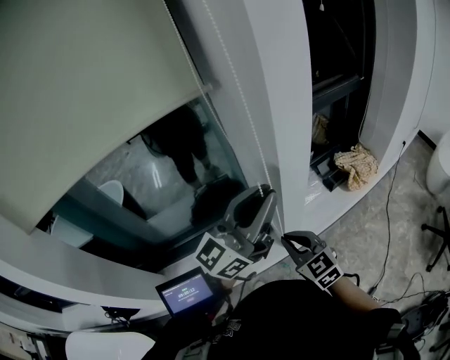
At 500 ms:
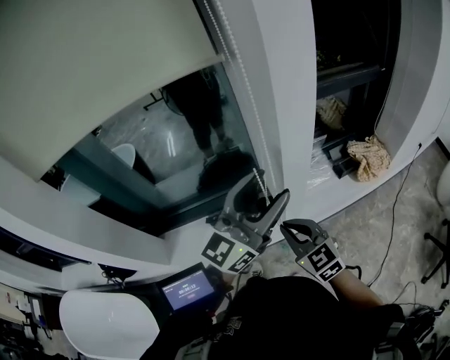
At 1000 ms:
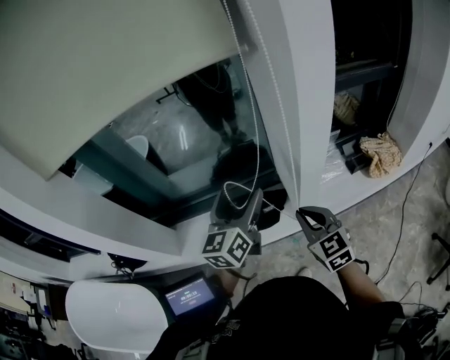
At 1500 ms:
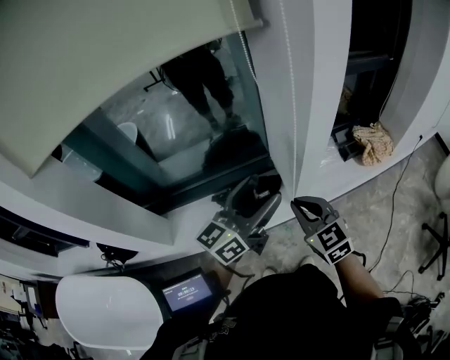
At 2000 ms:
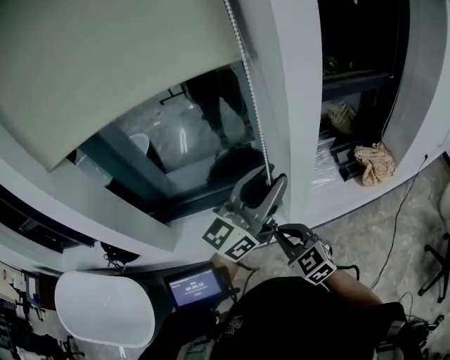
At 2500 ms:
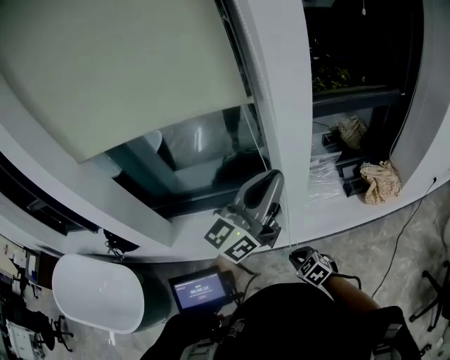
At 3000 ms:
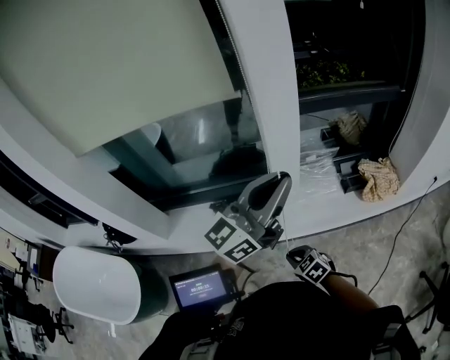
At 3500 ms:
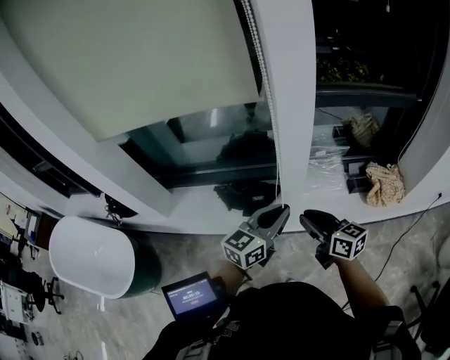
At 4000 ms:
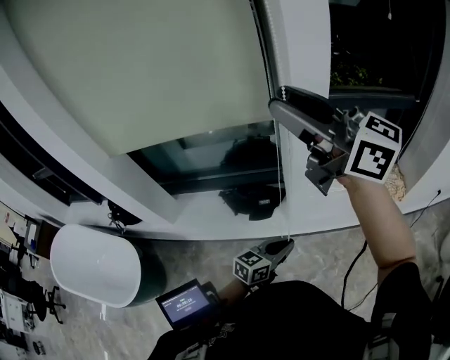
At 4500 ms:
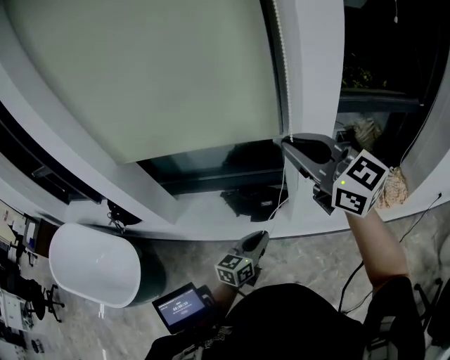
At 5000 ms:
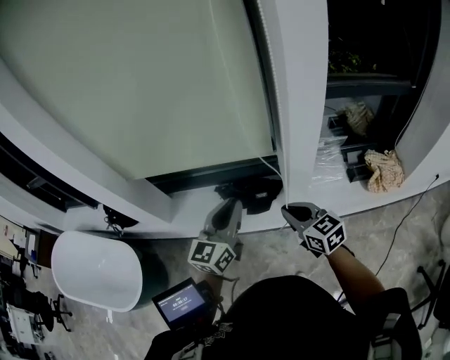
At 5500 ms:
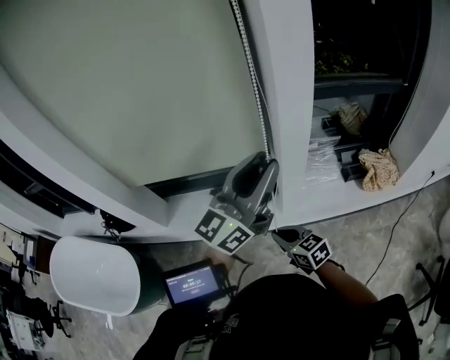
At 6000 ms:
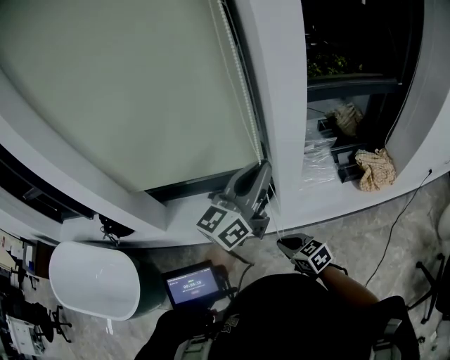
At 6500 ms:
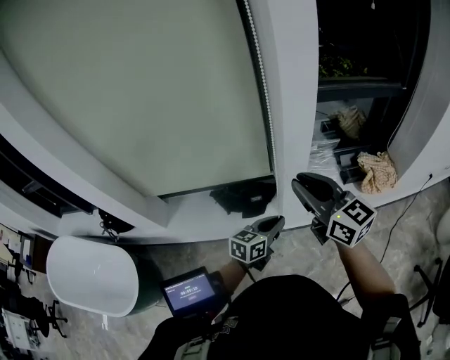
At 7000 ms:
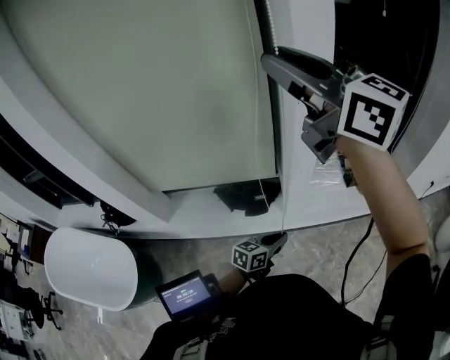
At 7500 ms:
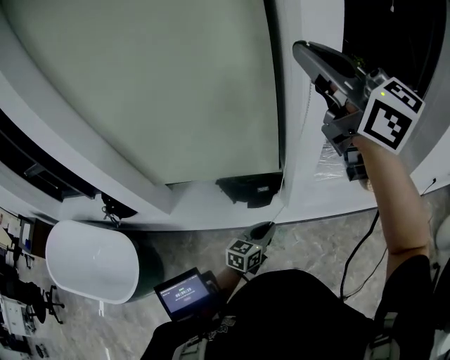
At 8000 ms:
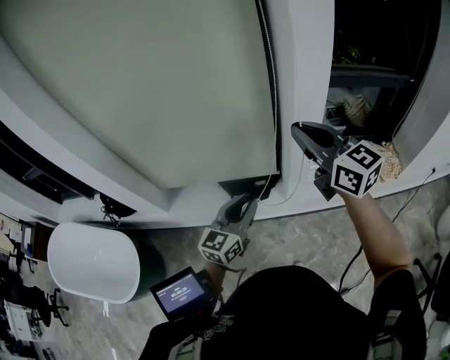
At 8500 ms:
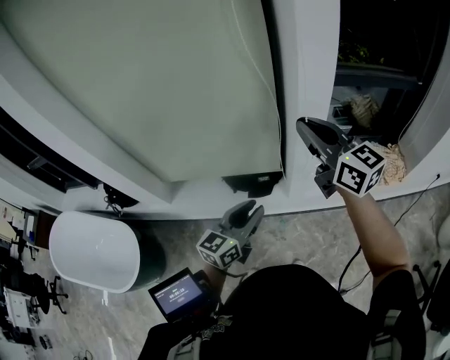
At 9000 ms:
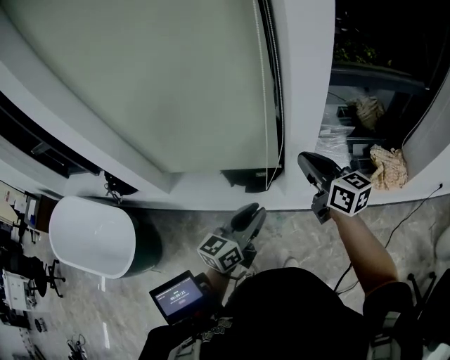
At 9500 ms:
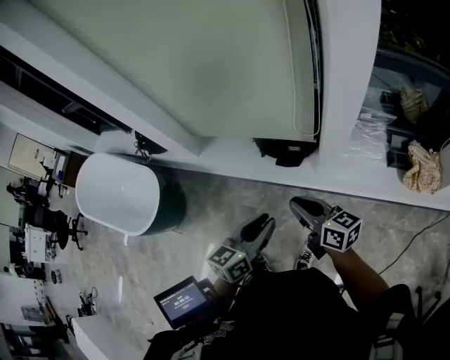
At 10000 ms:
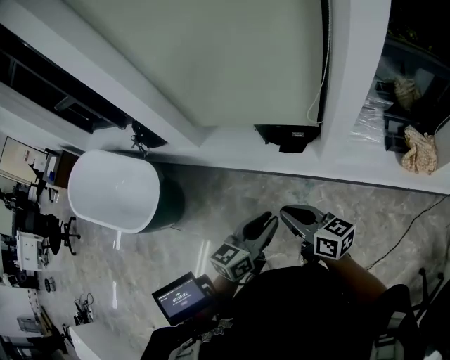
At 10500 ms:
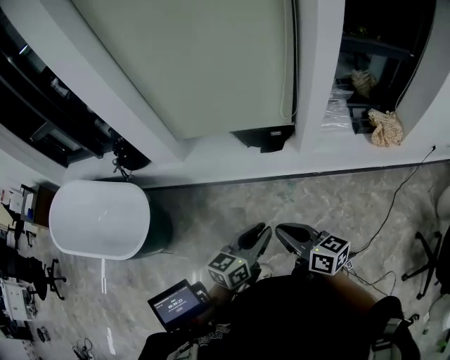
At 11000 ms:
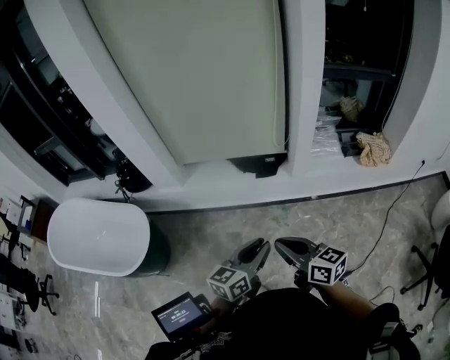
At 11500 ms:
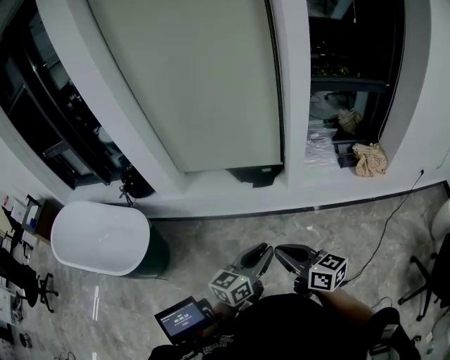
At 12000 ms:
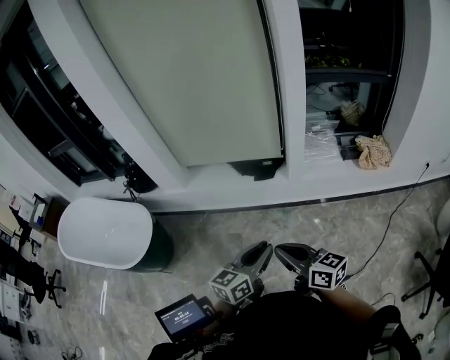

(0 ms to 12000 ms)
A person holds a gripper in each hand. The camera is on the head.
0 ms - 2000 ms: Both grippers travel together backward, approximately 10 cm. The left gripper moves some 15 cm to the left and comes back, and opens and closes again.
2000 ms - 4000 ms: The left gripper moves downward, some 30 cm, tips its fingers downward by about 40 degrees, and closes. The right gripper moves upward, roughly 40 cm, points its fingers roughly 40 degrees further upward, and opens its fingers.
4000 ms - 6000 ms: The right gripper shifts about 50 cm downward, points its fingers approximately 50 degrees further downward, and closes. The left gripper shifts some 25 cm upward, and points its fingers about 30 degrees further upward.
6000 ms - 8000 ms: The right gripper shifts some 35 cm upward and forward, angles its fingers upward, by roughly 30 degrees, and opens and closes again; the left gripper is displaced downward and to the left by approximately 20 cm, and swivels some 20 degrees.
8000 ms - 10000 ms: The right gripper travels downward, backward and to the left by about 35 cm, and rotates about 40 degrees. The left gripper heads backward, covering approximately 20 cm, and rotates approximately 20 degrees.
10000 ms - 12000 ms: The two grippers go roughly 20 cm backward.

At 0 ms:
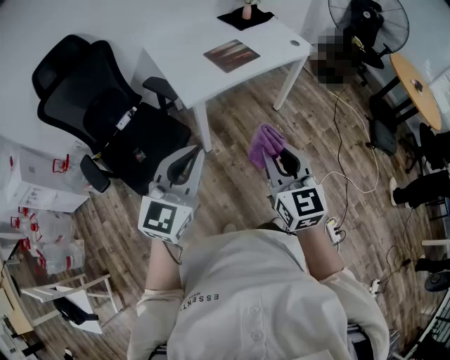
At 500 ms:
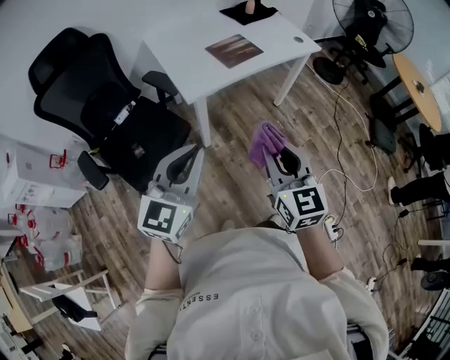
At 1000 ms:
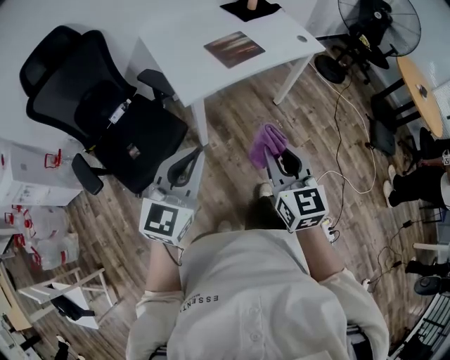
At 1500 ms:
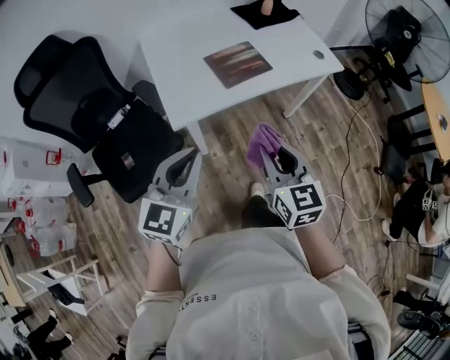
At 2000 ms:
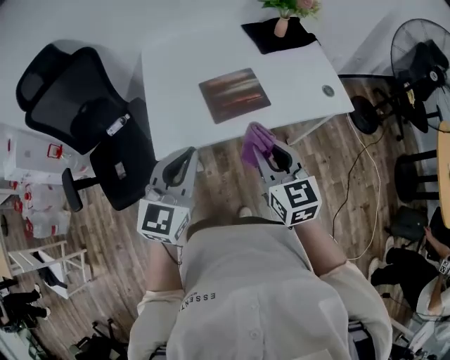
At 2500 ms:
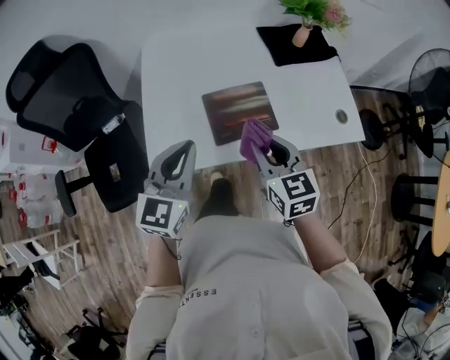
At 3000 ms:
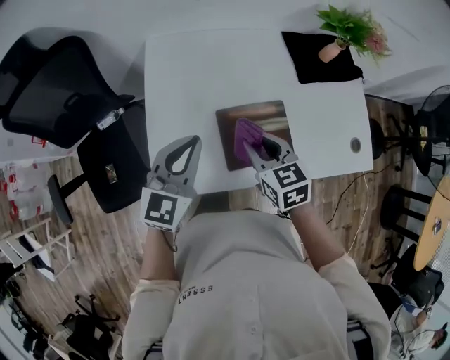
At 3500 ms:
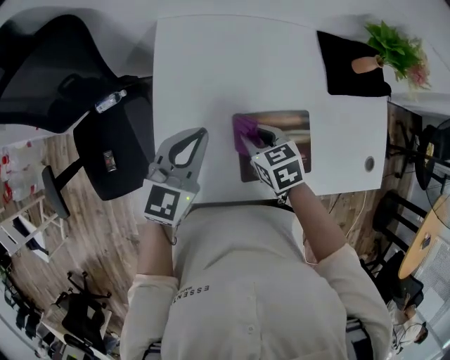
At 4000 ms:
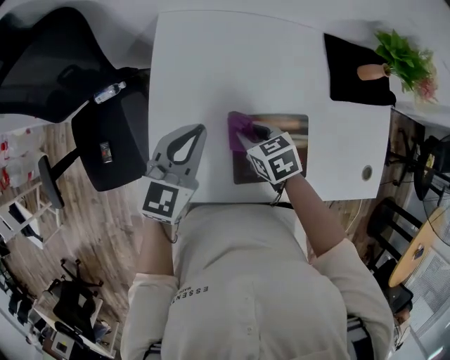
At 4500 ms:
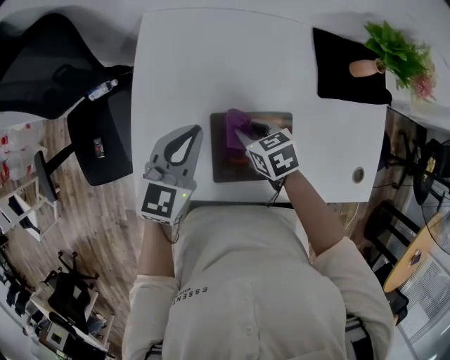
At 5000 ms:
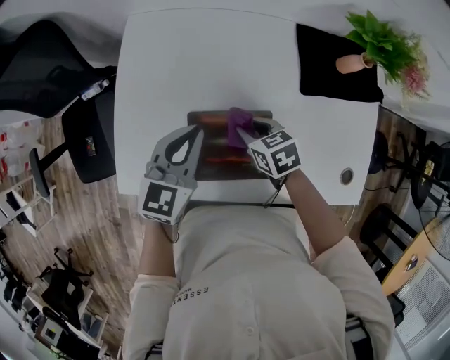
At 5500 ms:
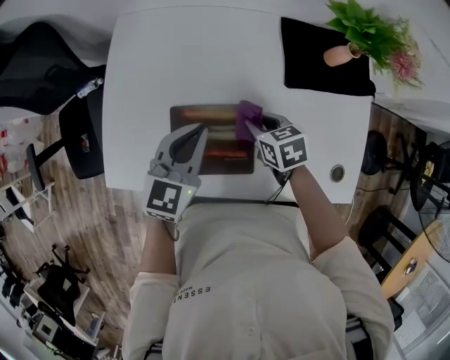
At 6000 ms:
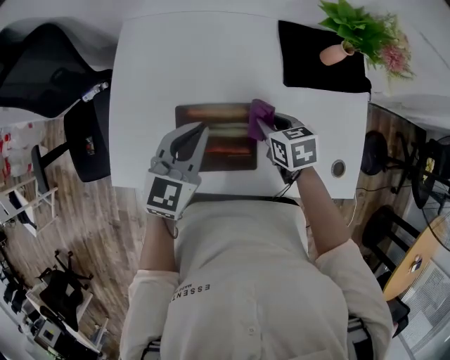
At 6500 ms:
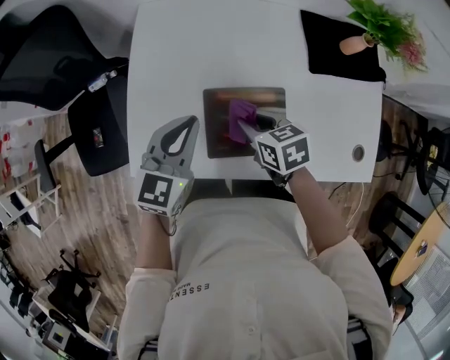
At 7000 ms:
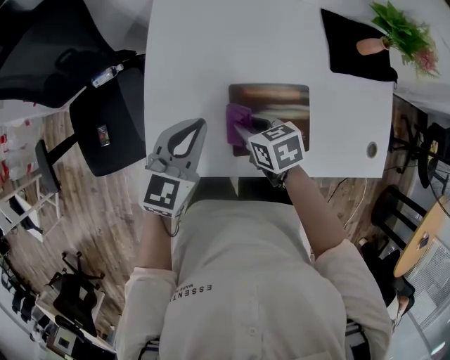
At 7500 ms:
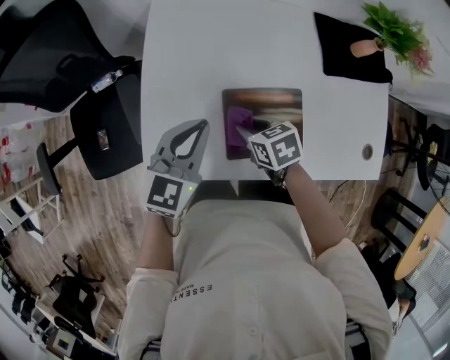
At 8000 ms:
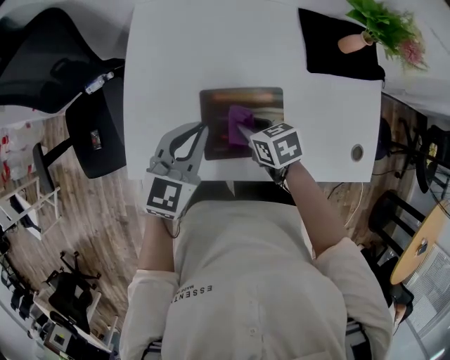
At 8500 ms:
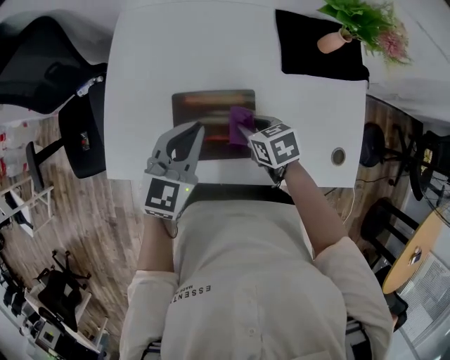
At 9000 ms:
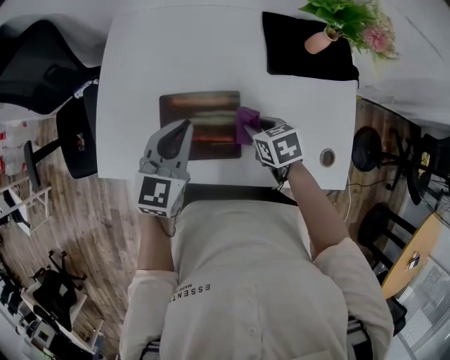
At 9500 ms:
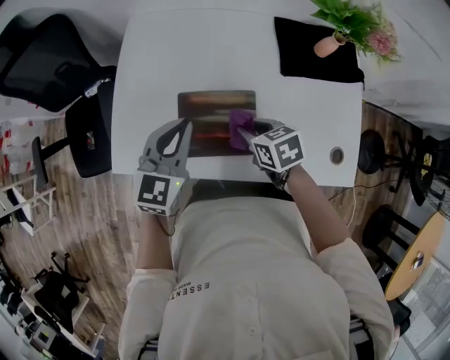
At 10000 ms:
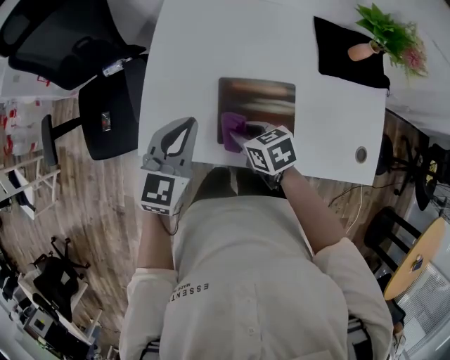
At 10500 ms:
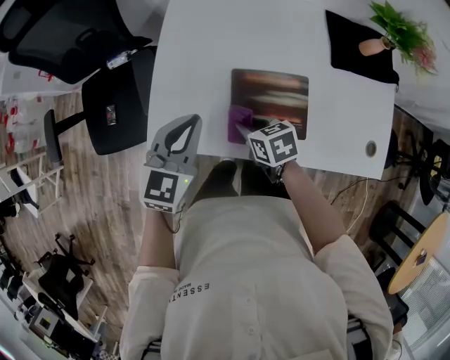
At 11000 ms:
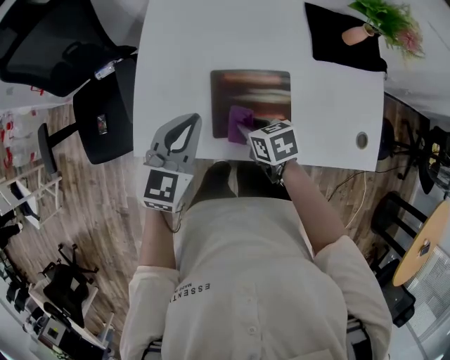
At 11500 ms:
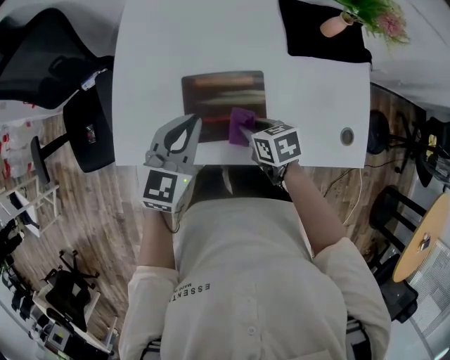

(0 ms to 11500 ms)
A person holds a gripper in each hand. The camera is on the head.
0 ms - 2000 ms: Both grippers travel together forward, roughly 40 cm. The right gripper changes its angle by some 20 degrees. Meanwhile the left gripper swivels some 20 degrees.
2000 ms - 4000 ms: The left gripper travels forward by roughly 35 cm; the right gripper heads forward and downward, covering roughly 40 cm, and tips its fingers downward by approximately 40 degrees.
4000 ms - 6000 ms: The grippers both shift to the right by about 20 cm.
6000 ms - 7500 ms: Both grippers move to the left, roughly 15 cm.
7500 ms - 9500 ms: Both grippers move to the right, some 10 cm.
9500 ms - 11500 ms: The right gripper travels to the left and back again, about 15 cm each way; the left gripper goes to the left and returns, approximately 15 cm each way.

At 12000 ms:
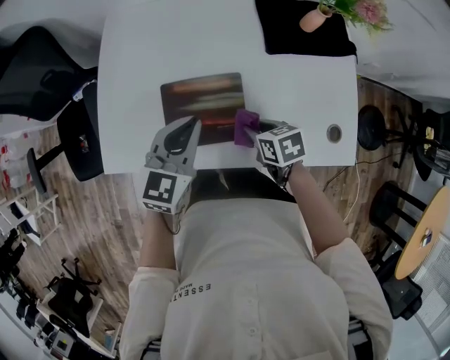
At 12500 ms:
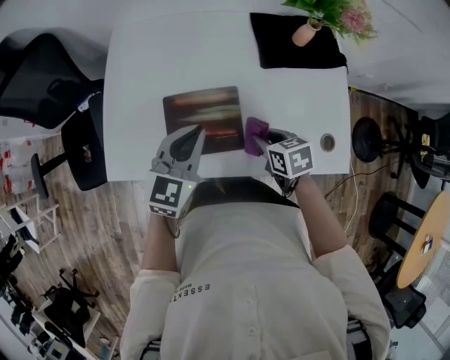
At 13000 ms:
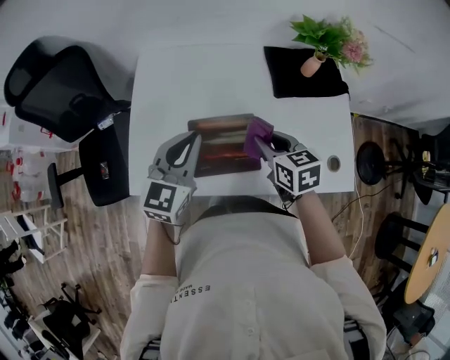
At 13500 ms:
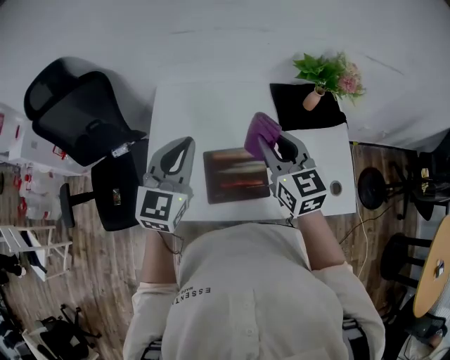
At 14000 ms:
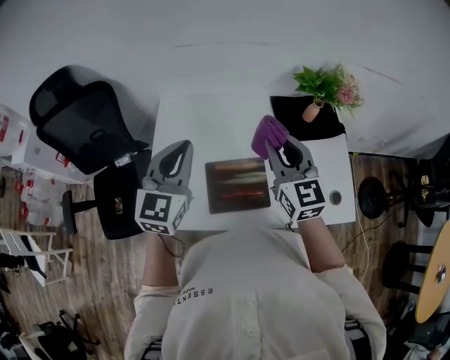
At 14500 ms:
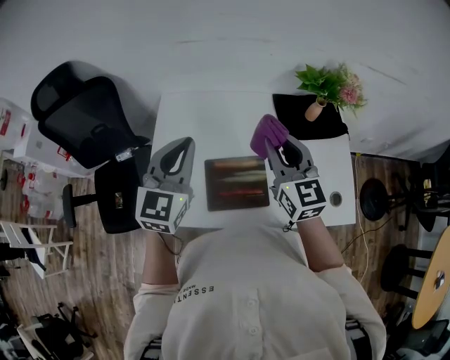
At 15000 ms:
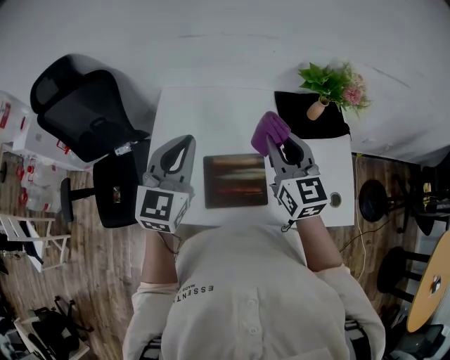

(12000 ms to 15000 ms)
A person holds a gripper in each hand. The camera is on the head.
12000 ms - 13500 ms: The left gripper is displaced upward and to the left by about 20 cm. The right gripper heads upward, covering approximately 30 cm, and tilts its fingers roughly 40 degrees upward.
13500 ms - 15000 ms: The grippers move only a little.
